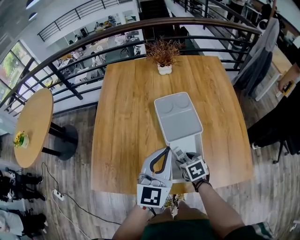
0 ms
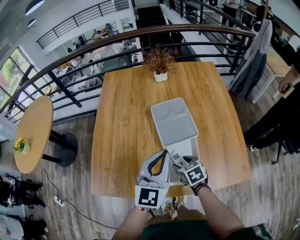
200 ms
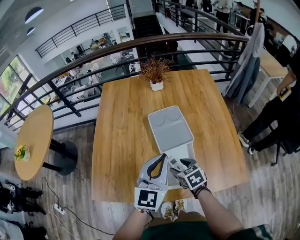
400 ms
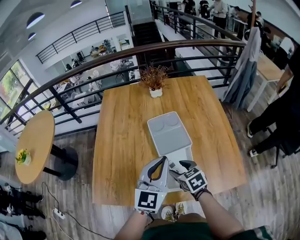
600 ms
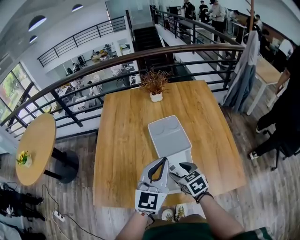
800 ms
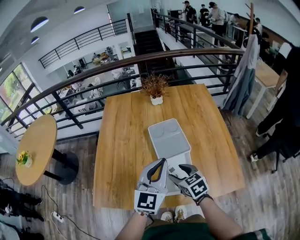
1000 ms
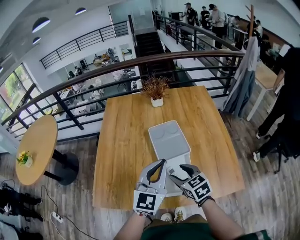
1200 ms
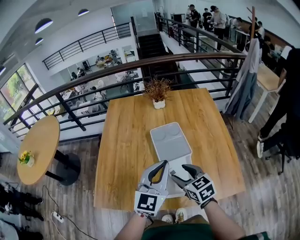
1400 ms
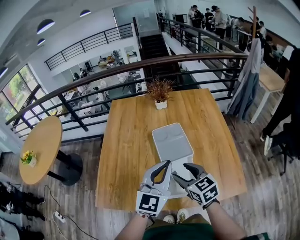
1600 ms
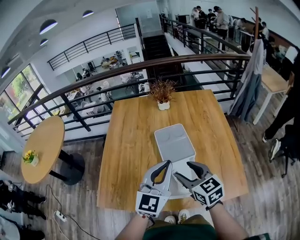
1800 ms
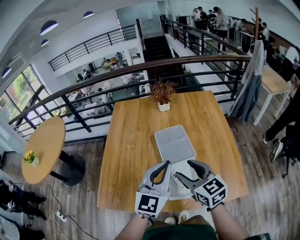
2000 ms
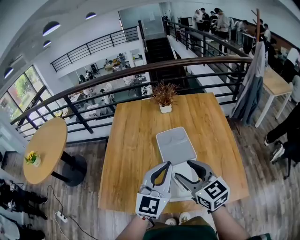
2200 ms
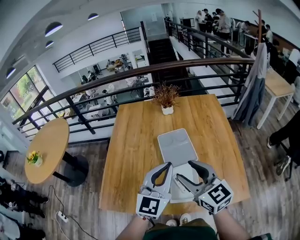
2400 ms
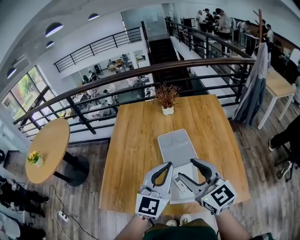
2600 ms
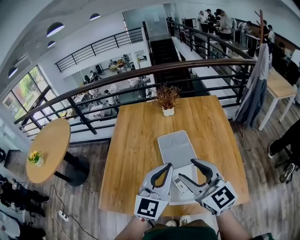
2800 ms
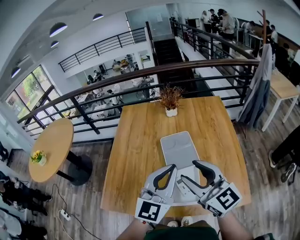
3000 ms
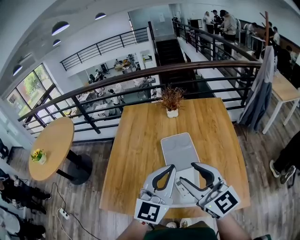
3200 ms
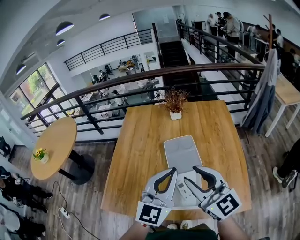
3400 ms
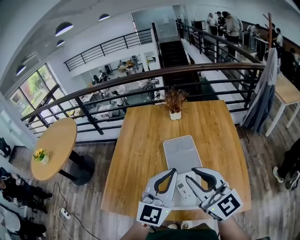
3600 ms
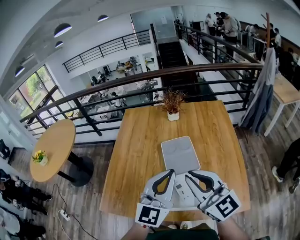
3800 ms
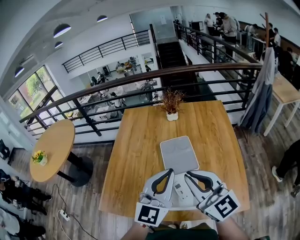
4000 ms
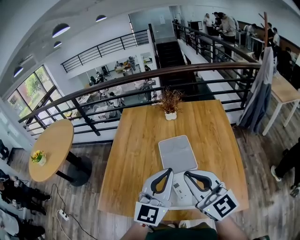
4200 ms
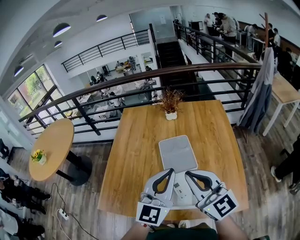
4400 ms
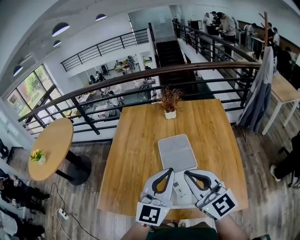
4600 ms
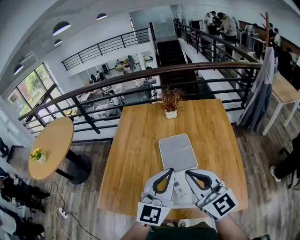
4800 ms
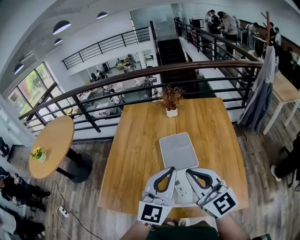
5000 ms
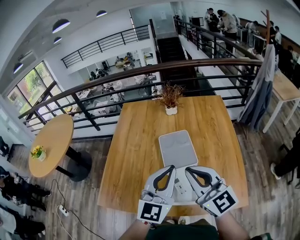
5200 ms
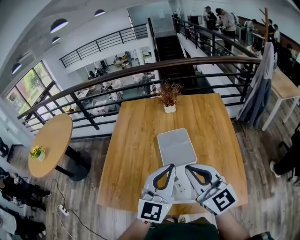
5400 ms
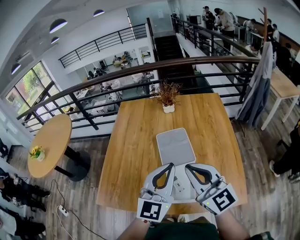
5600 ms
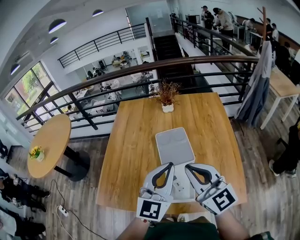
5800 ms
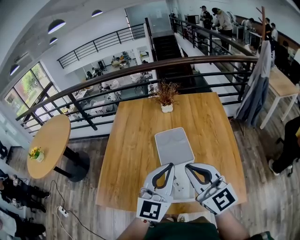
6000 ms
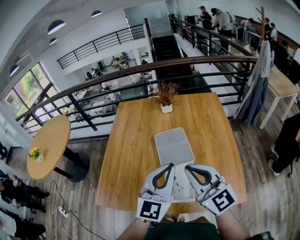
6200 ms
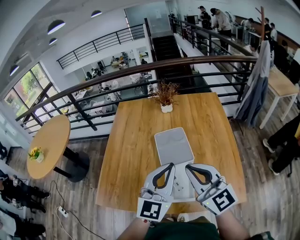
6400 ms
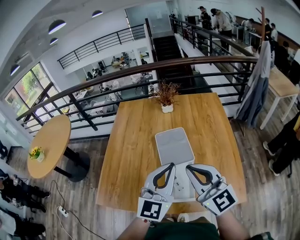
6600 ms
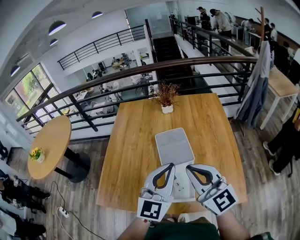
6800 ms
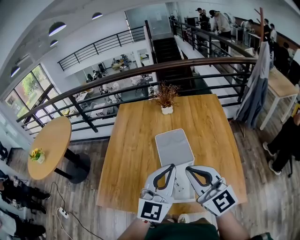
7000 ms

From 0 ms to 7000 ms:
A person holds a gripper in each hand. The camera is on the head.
From 0 ms to 1400 ms: The left gripper heads upward, covering approximately 5 cm. The right gripper goes about 20 cm upward, and turns by some 30 degrees.
From 1400 ms to 2800 ms: The right gripper shifts approximately 15 cm upward, and swivels roughly 30 degrees.
From 2800 ms to 4200 ms: The right gripper closes.
From 4200 ms to 5600 ms: The grippers stay close to where they were, moving slightly.
From 5600 ms to 7000 ms: The two grippers keep their place.

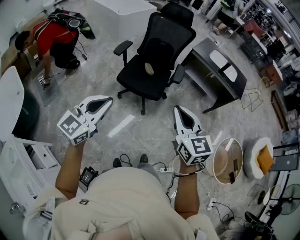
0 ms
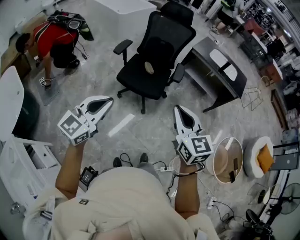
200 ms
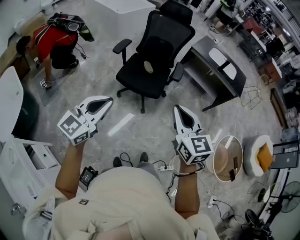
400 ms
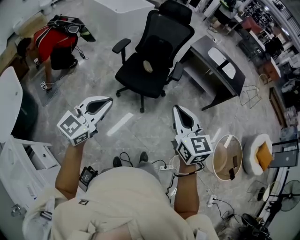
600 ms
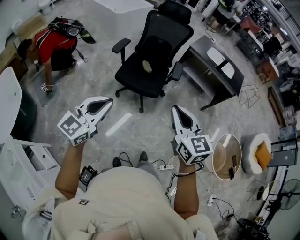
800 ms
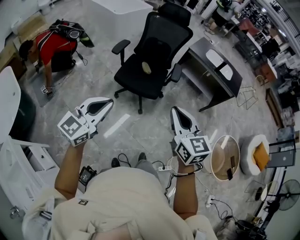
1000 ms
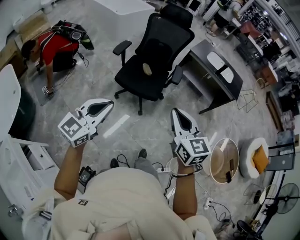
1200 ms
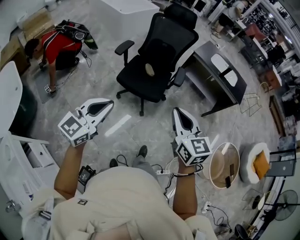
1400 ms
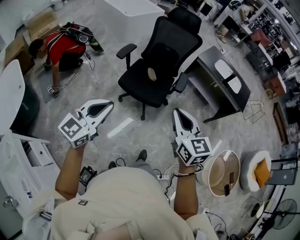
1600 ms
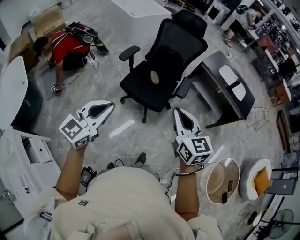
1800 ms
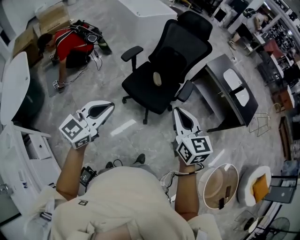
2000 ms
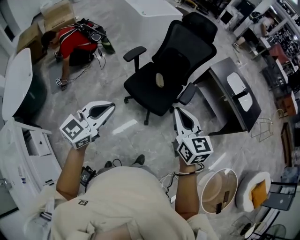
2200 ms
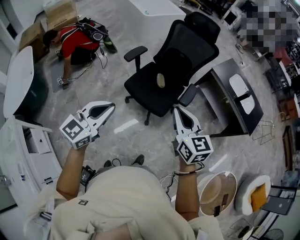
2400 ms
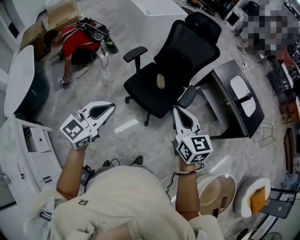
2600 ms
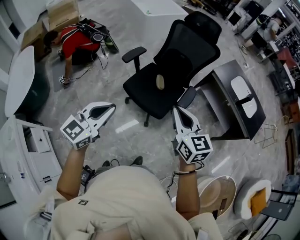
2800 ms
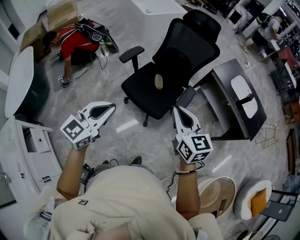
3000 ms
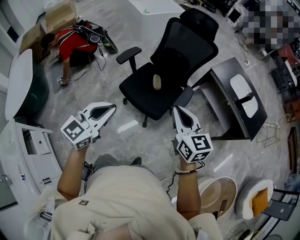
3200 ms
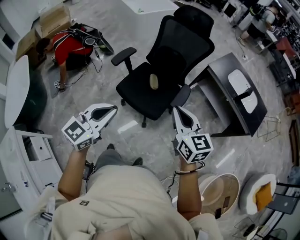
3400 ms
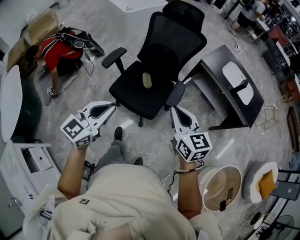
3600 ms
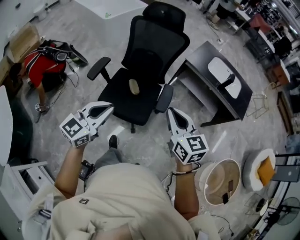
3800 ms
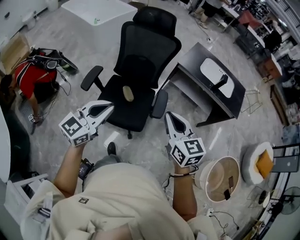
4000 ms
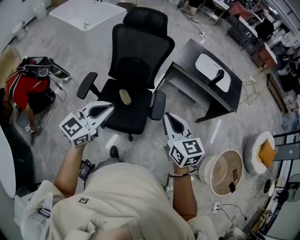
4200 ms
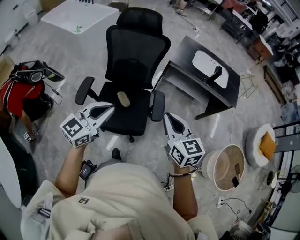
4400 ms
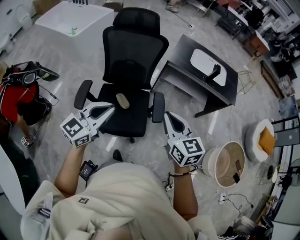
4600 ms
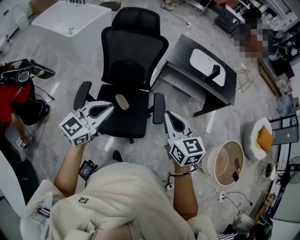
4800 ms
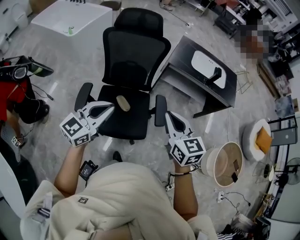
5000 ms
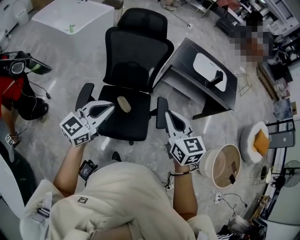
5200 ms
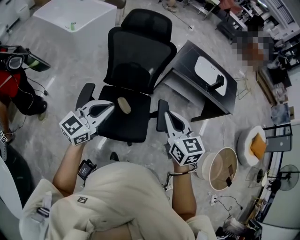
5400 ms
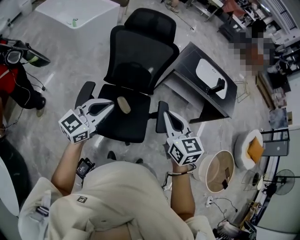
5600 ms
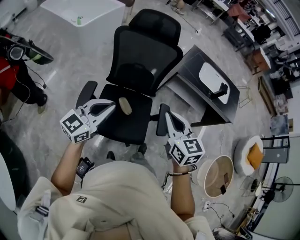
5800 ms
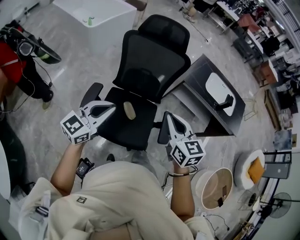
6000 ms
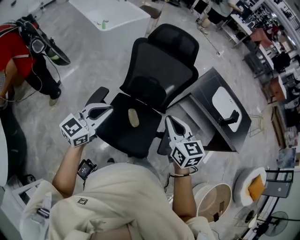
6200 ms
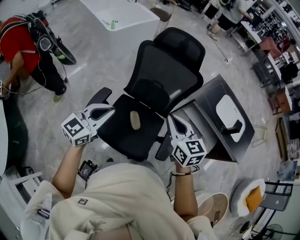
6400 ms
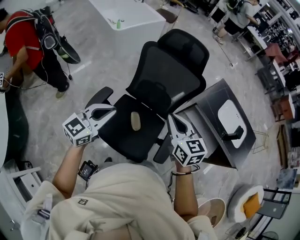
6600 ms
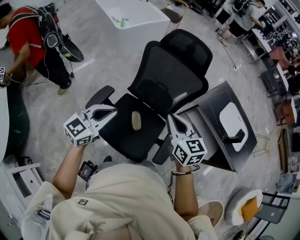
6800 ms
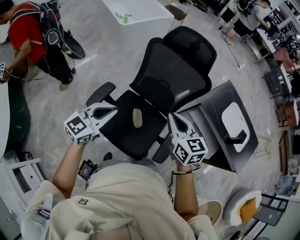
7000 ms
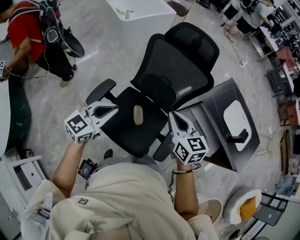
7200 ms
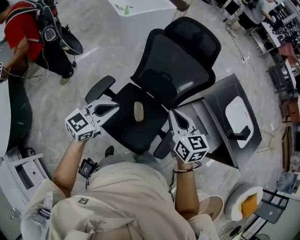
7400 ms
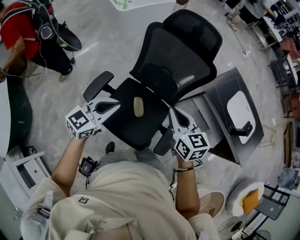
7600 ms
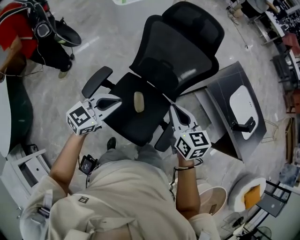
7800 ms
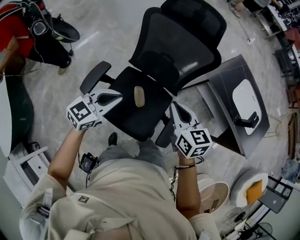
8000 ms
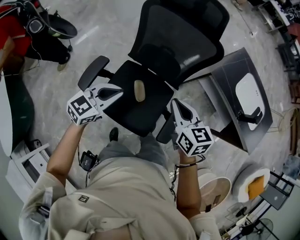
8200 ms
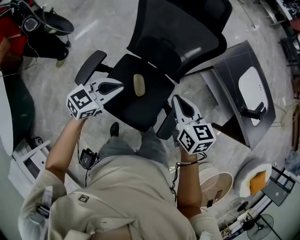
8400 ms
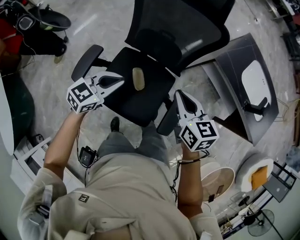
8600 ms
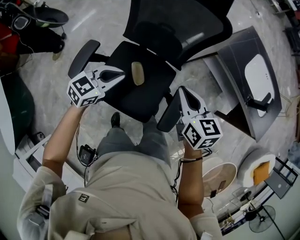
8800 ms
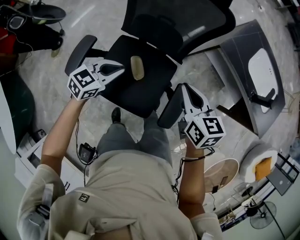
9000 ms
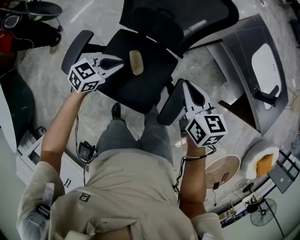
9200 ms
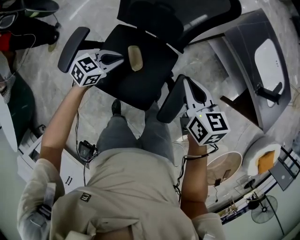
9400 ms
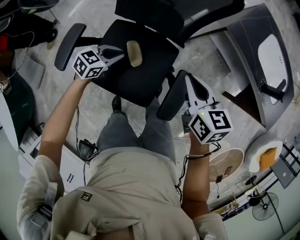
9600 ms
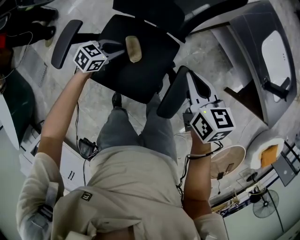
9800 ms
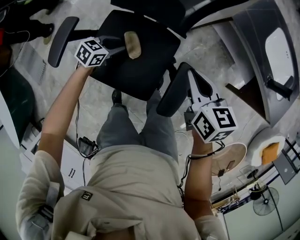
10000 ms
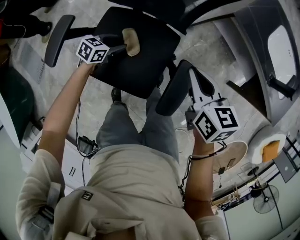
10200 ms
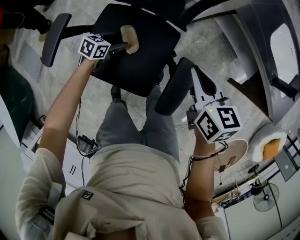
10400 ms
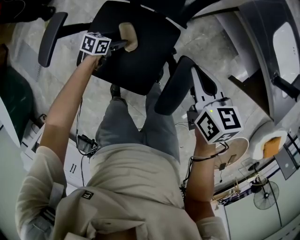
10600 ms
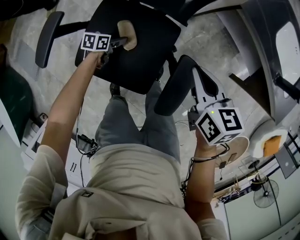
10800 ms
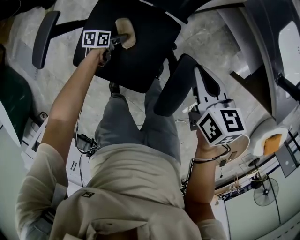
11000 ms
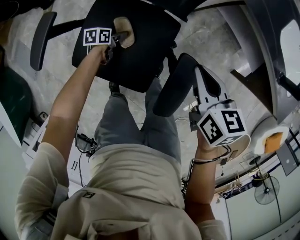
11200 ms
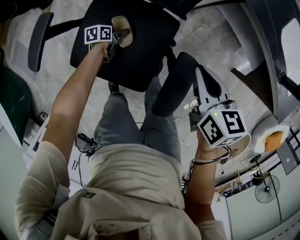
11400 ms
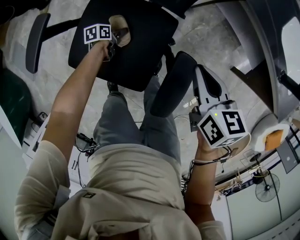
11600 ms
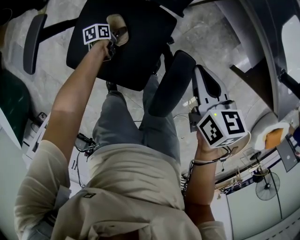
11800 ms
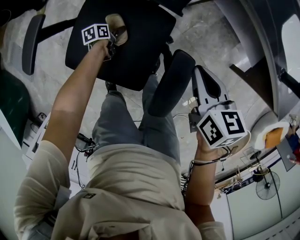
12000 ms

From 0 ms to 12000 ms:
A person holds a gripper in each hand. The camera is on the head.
From 0 ms to 1600 ms: The right gripper heads forward, covering about 5 cm.
From 1600 ms to 3000 ms: The grippers both shift forward and to the right by about 20 cm.
From 3000 ms to 4400 ms: The right gripper changes place by some 15 cm, and turns by roughly 30 degrees. Meanwhile the left gripper ends up roughly 25 cm from where it was, and changes its angle by approximately 30 degrees.
From 4400 ms to 6000 ms: The right gripper travels forward and to the left by some 20 cm, while the left gripper is displaced to the left and forward by roughly 15 cm.
From 6000 ms to 7600 ms: The left gripper travels downward and forward by about 10 cm, while the right gripper travels forward and downward by about 15 cm.
From 7600 ms to 9000 ms: The left gripper shifts some 20 cm downward, and changes its angle by approximately 20 degrees. Meanwhile the right gripper heads downward and to the right, covering about 15 cm.
From 9000 ms to 10400 ms: The left gripper goes approximately 30 cm downward, changes its angle by roughly 30 degrees, and opens, while the right gripper heads downward and to the right, covering about 10 cm.
From 10400 ms to 12000 ms: The left gripper travels downward by roughly 15 cm, and rotates around the line of its fingers by approximately 40 degrees, counterclockwise from behind; the right gripper moves downward, roughly 5 cm.

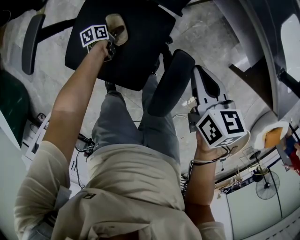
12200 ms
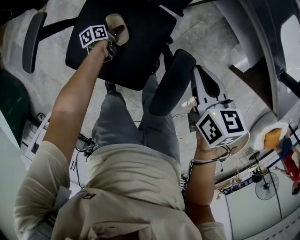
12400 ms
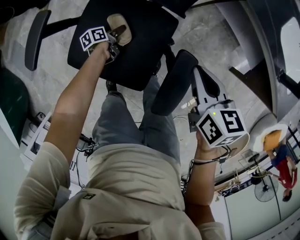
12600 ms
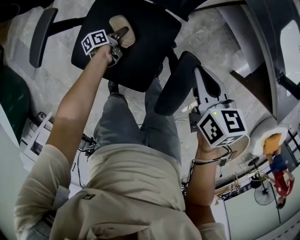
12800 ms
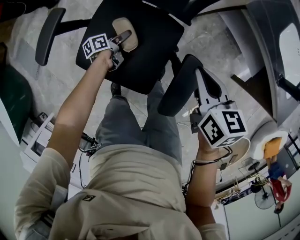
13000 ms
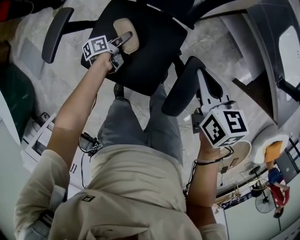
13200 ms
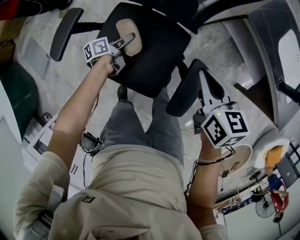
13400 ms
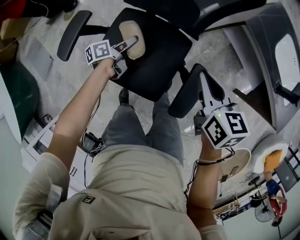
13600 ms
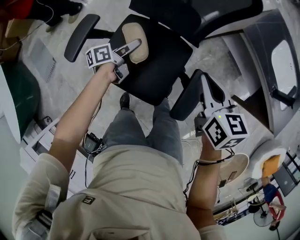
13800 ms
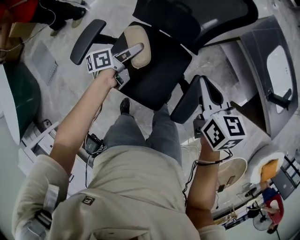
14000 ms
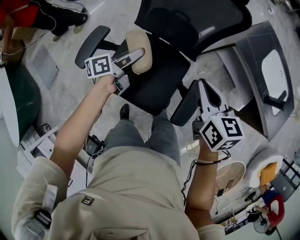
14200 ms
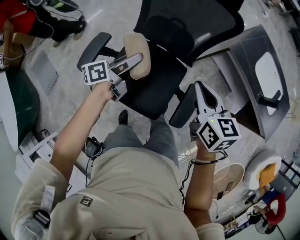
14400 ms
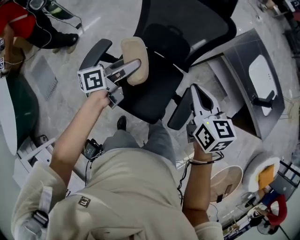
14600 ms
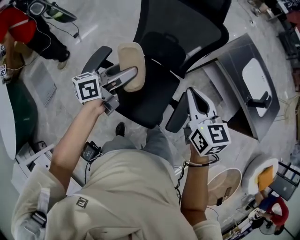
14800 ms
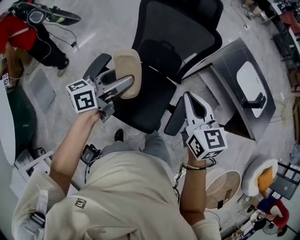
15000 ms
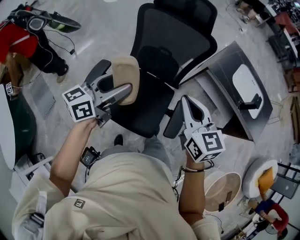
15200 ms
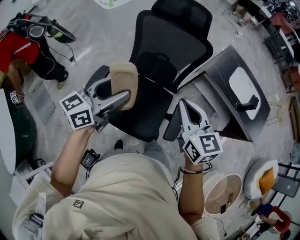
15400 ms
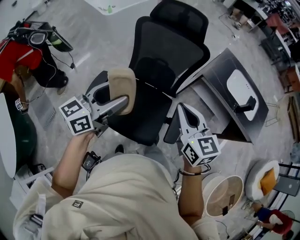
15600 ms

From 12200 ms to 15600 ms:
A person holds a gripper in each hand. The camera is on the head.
From 12200 ms to 13800 ms: The left gripper moves upward, some 30 cm, and tilts its fingers about 30 degrees upward. Meanwhile the right gripper is displaced upward and to the left by some 15 cm.
From 13800 ms to 15600 ms: The left gripper heads upward, covering about 40 cm, and rolls clockwise, seen from behind, by some 50 degrees. Meanwhile the right gripper shifts some 20 cm upward, and rotates approximately 30 degrees.

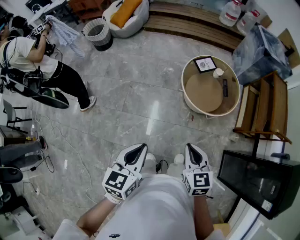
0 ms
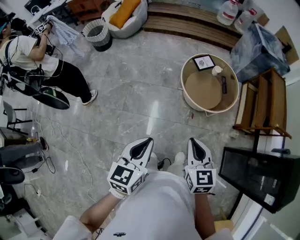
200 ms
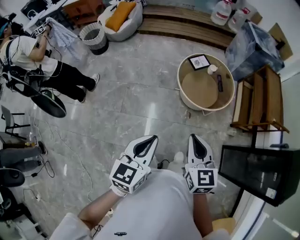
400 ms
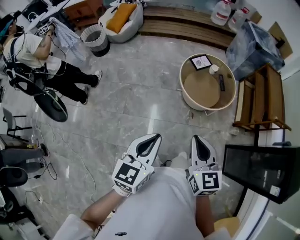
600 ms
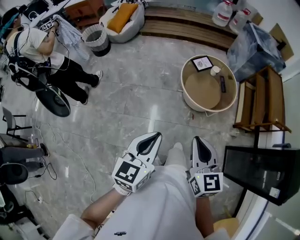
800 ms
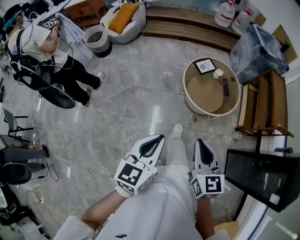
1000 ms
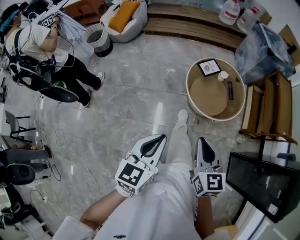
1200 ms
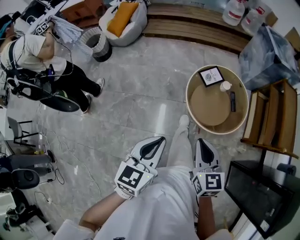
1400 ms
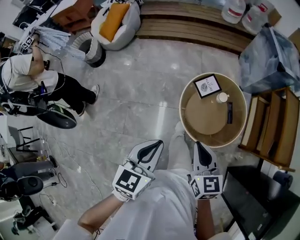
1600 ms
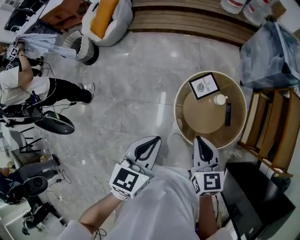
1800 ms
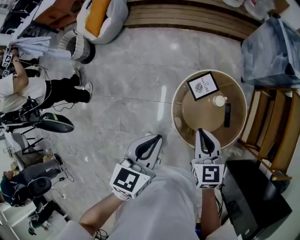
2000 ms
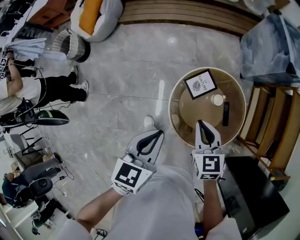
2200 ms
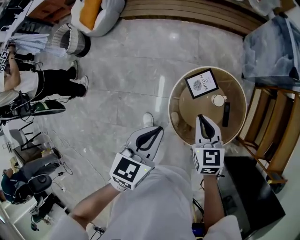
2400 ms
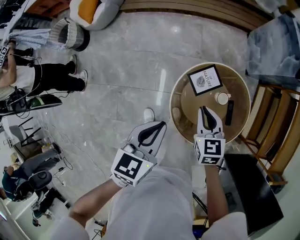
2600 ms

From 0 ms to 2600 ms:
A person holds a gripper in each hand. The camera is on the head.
From 0 ms to 1200 ms: The two grippers go about 10 cm forward.
From 1200 ms to 2600 ms: Both grippers are carried forward, roughly 50 cm.
